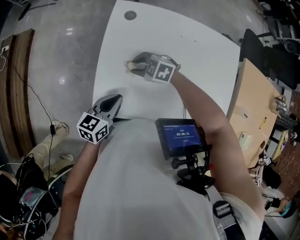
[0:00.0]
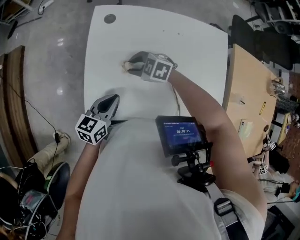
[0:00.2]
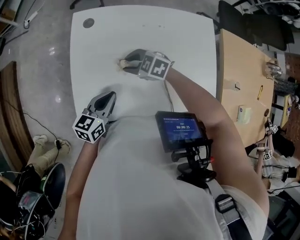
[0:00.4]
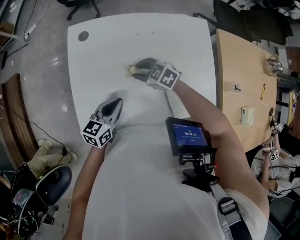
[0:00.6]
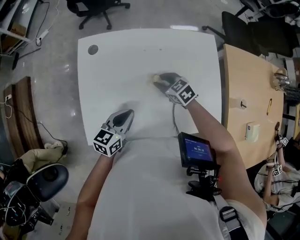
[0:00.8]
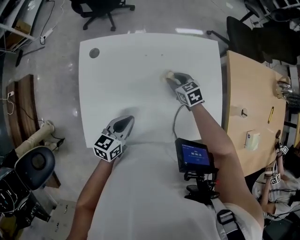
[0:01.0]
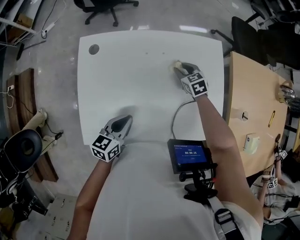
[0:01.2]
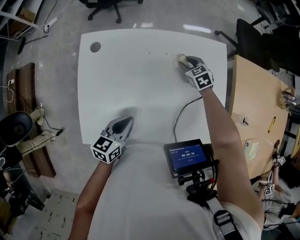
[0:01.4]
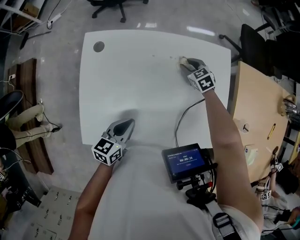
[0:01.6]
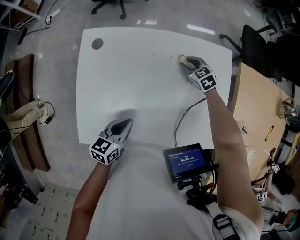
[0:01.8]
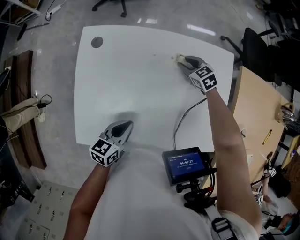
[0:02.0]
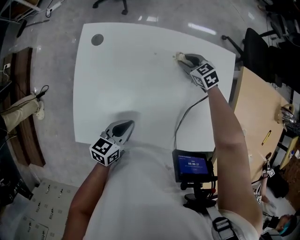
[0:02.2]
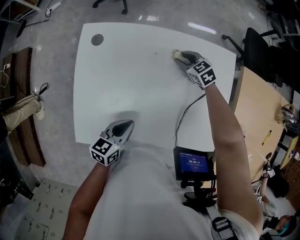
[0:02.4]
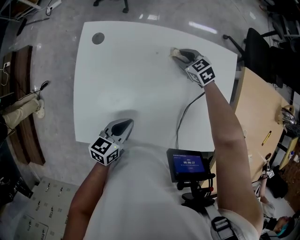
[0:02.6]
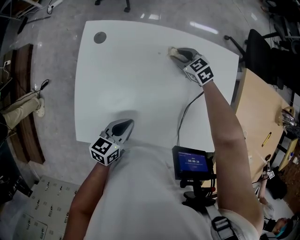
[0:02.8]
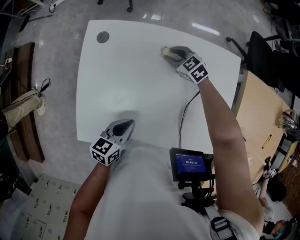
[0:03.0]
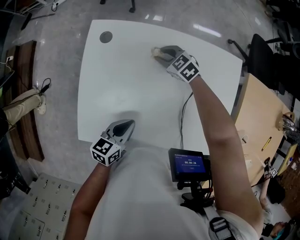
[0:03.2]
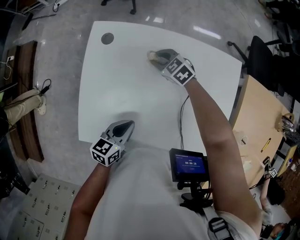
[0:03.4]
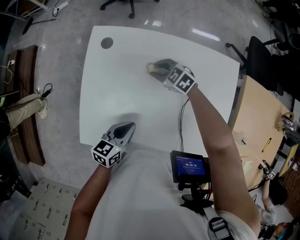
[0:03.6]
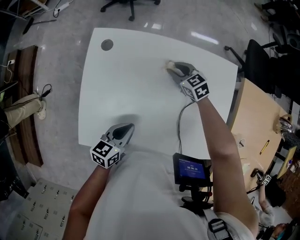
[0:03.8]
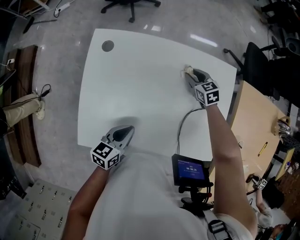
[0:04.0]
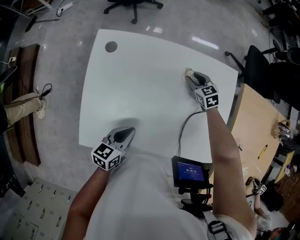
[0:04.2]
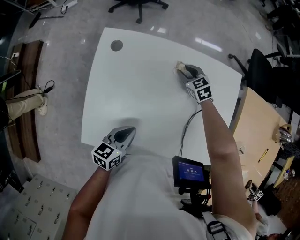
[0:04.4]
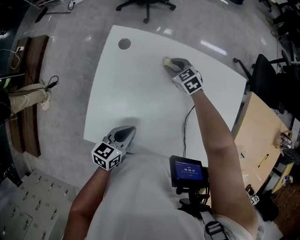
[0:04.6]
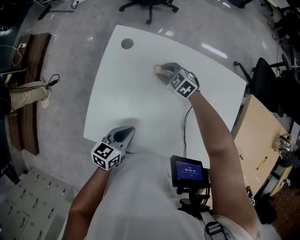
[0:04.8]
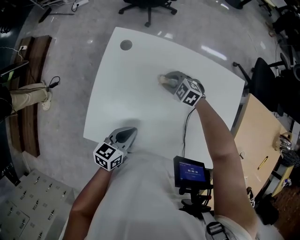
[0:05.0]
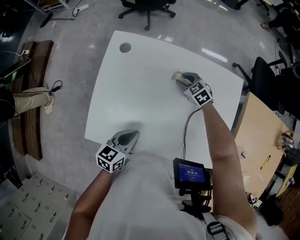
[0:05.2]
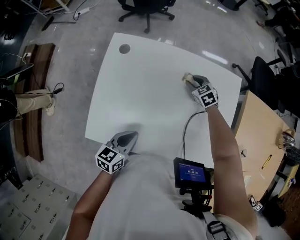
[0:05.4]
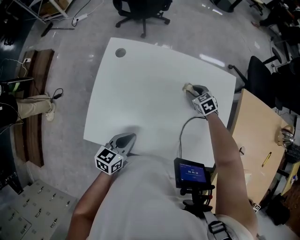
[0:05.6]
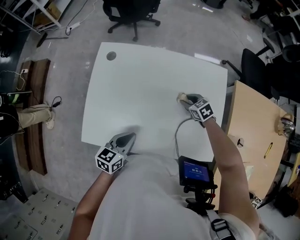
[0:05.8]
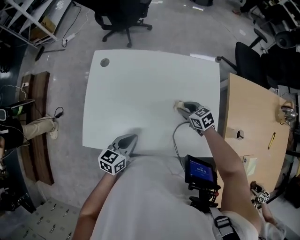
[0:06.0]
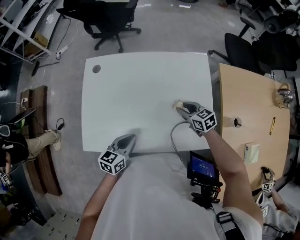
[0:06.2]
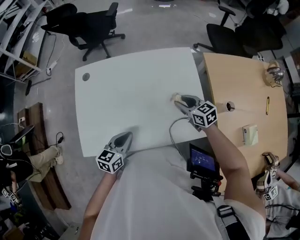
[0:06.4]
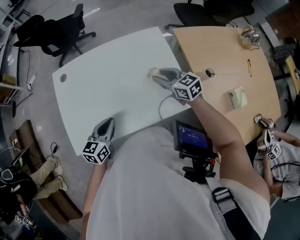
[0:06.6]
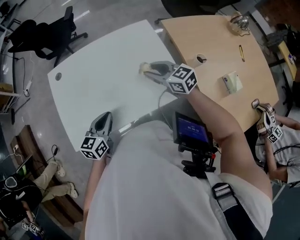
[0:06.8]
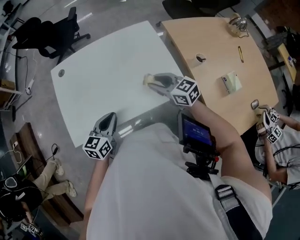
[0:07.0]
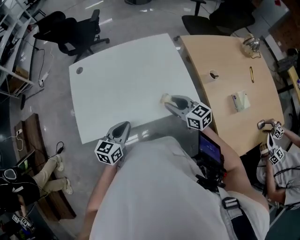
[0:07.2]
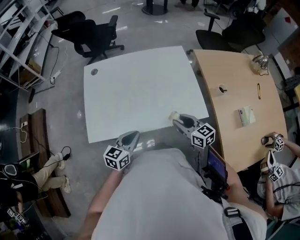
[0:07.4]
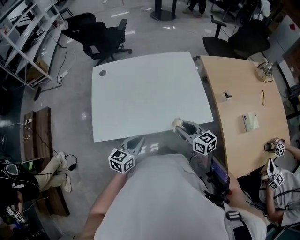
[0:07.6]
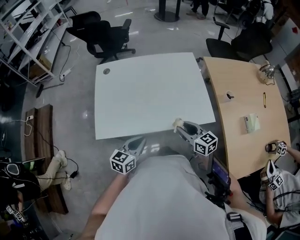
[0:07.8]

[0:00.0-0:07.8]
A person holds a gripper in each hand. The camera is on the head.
0:00.0 to 0:01.6: The left gripper moves about 15 cm, while the right gripper ends up some 40 cm from where it was, and changes its angle by some 50 degrees.
0:01.6 to 0:03.2: The right gripper travels to the left by approximately 20 cm, and changes its angle by roughly 30 degrees.
0:03.2 to 0:04.6: The right gripper reaches approximately 15 cm to the right, then returns.
0:04.6 to 0:06.2: The right gripper travels backward and to the right by roughly 30 cm, and swivels some 30 degrees; the left gripper is displaced to the right and backward by about 10 cm.
0:06.2 to 0:07.8: The right gripper moves backward, approximately 25 cm, and swivels roughly 20 degrees; the left gripper moves backward, roughly 15 cm.

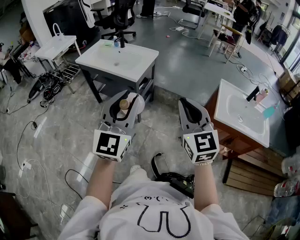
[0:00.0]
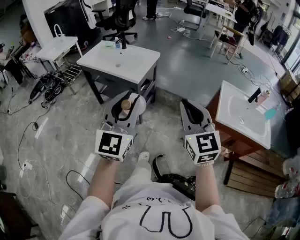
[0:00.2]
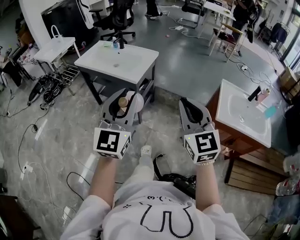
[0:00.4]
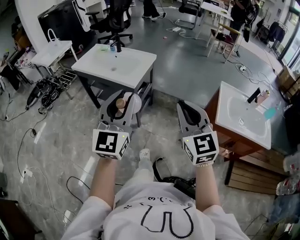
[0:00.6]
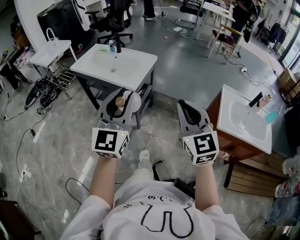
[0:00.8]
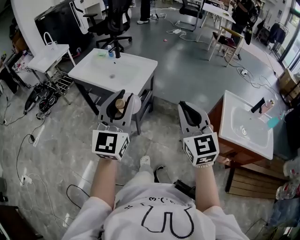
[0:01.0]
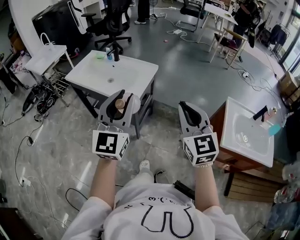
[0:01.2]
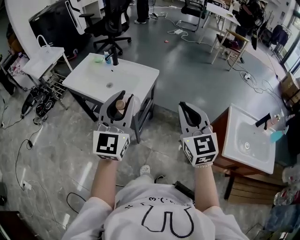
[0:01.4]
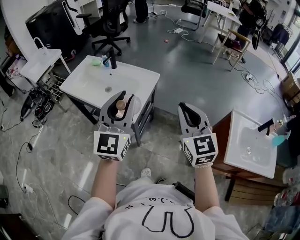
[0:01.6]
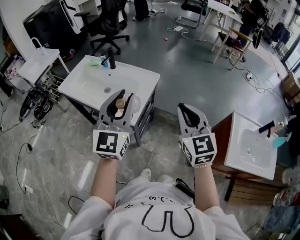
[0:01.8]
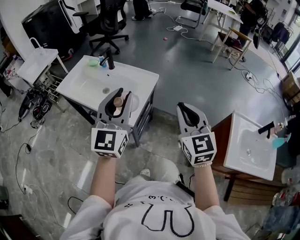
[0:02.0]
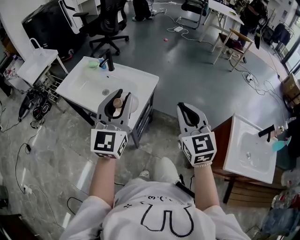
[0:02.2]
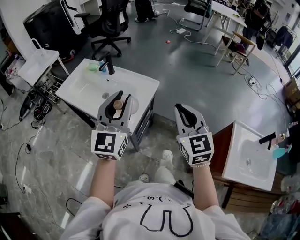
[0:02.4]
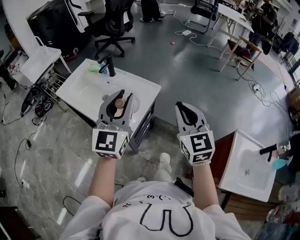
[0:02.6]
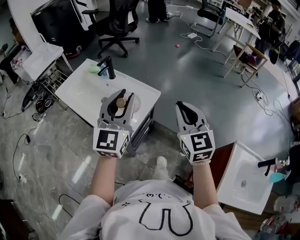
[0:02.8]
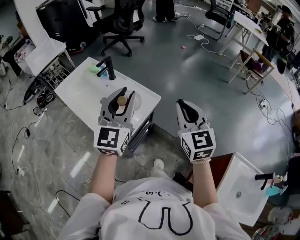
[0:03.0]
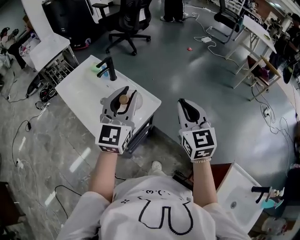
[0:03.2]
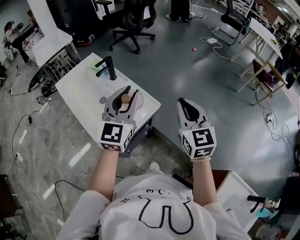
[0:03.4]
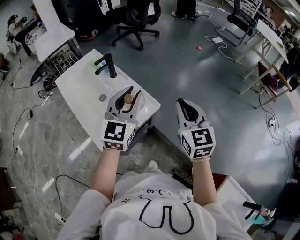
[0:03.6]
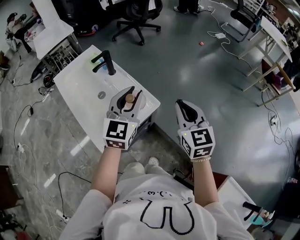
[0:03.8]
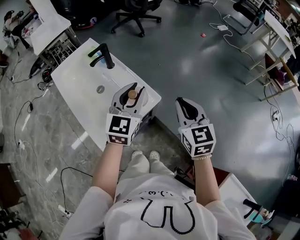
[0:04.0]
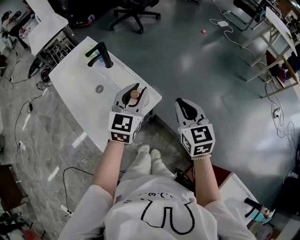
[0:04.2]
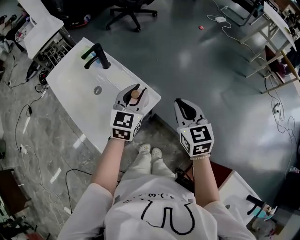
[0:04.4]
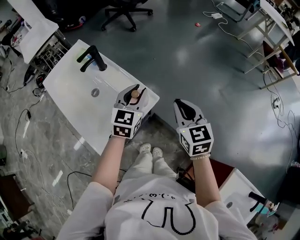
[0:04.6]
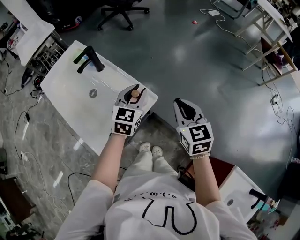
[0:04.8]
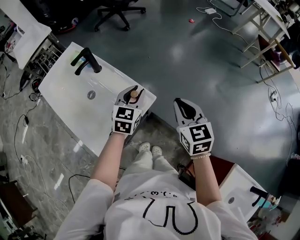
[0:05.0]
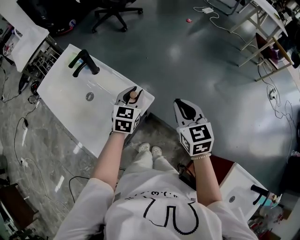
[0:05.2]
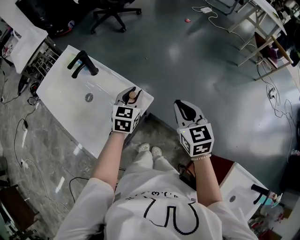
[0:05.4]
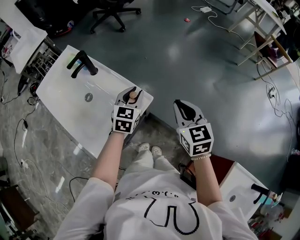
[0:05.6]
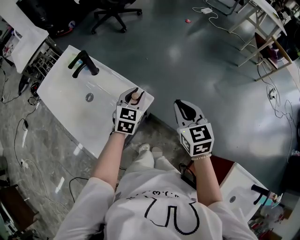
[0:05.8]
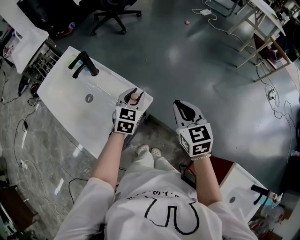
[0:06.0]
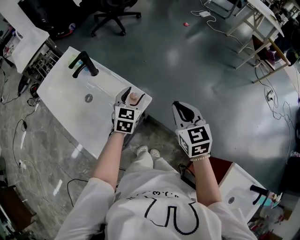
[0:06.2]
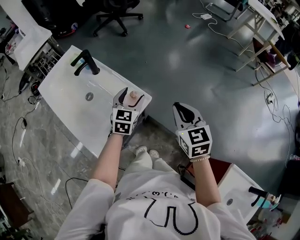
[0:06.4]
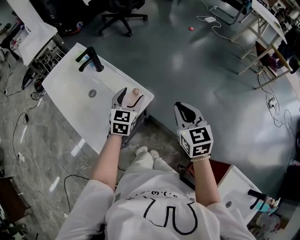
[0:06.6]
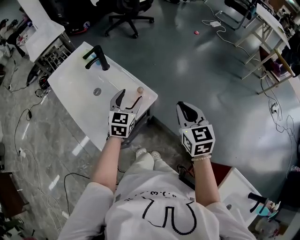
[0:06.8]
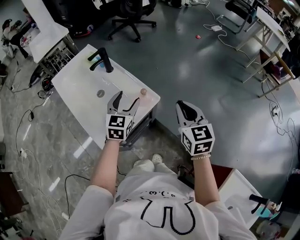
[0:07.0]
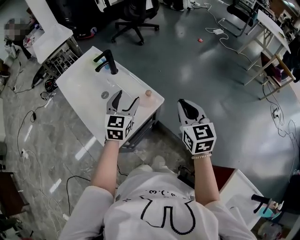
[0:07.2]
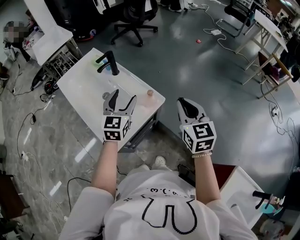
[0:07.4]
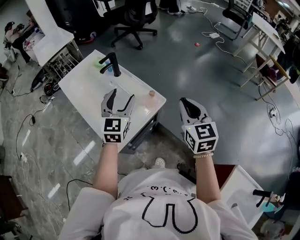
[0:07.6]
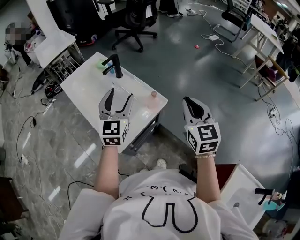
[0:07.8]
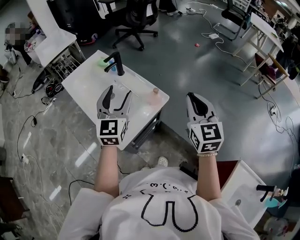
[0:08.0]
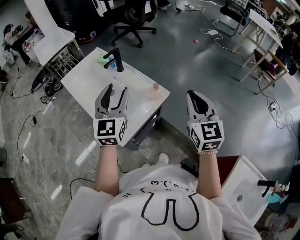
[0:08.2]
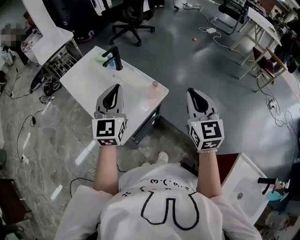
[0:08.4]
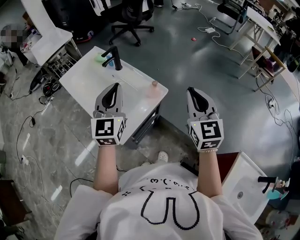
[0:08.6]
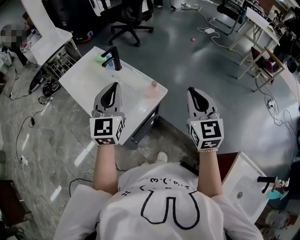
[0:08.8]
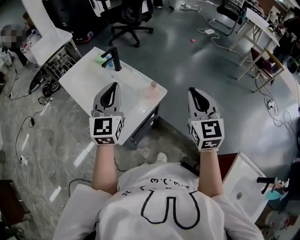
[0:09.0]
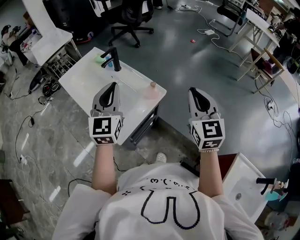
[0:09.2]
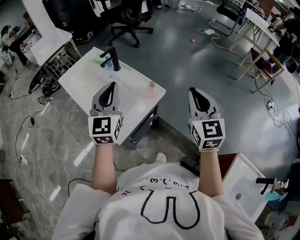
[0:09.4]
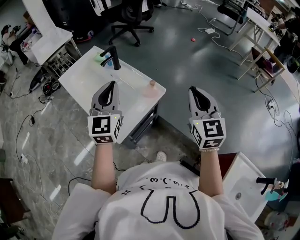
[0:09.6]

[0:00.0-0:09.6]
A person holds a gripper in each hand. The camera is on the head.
0:00.0 to 0:01.6: Both grippers travel together forward, approximately 35 cm.
0:01.6 to 0:03.2: Both grippers travel together forward, approximately 25 cm.
0:03.2 to 0:04.8: The right gripper travels downward and forward by some 15 cm. Meanwhile the left gripper moves downward and forward, roughly 25 cm, and turns by about 30 degrees.
0:04.8 to 0:06.4: The left gripper opens.
0:06.4 to 0:08.0: The right gripper travels upward, to the left and backward by roughly 15 cm, while the left gripper shifts roughly 25 cm upward, to the left and backward, and turns by some 30 degrees.
0:08.0 to 0:09.6: The left gripper closes up.

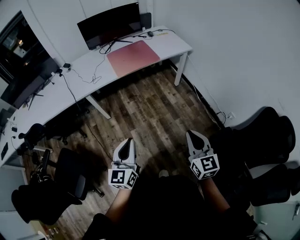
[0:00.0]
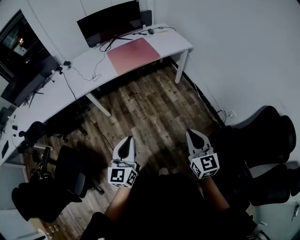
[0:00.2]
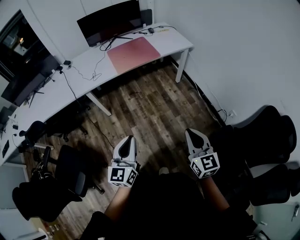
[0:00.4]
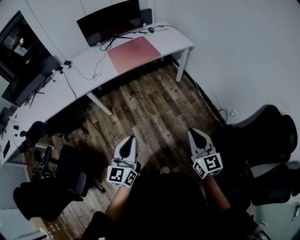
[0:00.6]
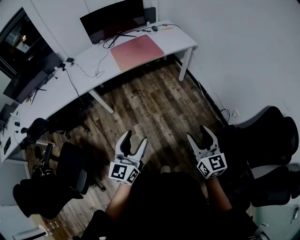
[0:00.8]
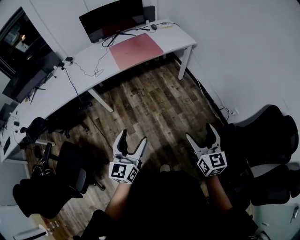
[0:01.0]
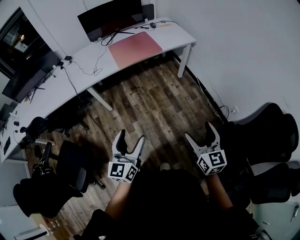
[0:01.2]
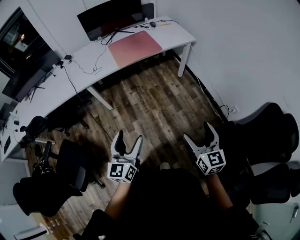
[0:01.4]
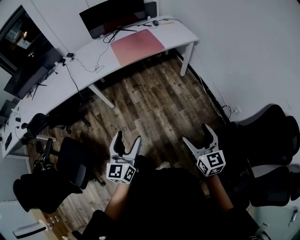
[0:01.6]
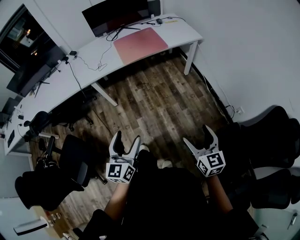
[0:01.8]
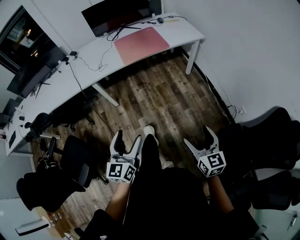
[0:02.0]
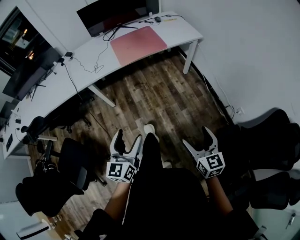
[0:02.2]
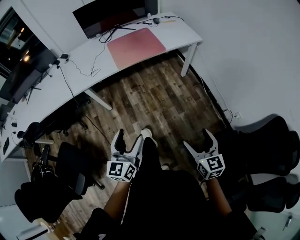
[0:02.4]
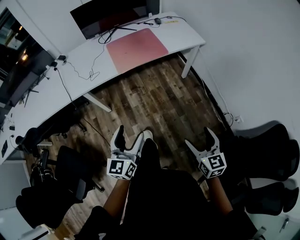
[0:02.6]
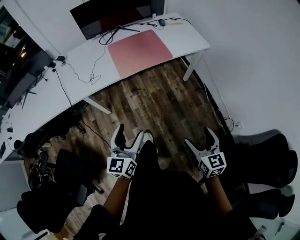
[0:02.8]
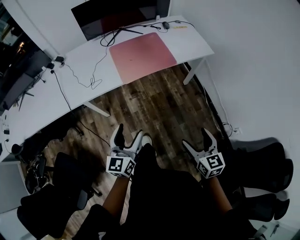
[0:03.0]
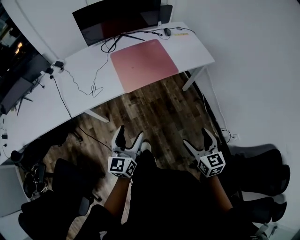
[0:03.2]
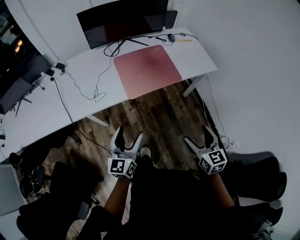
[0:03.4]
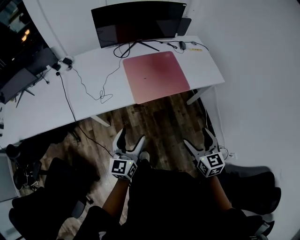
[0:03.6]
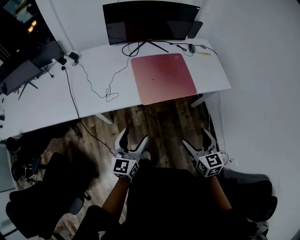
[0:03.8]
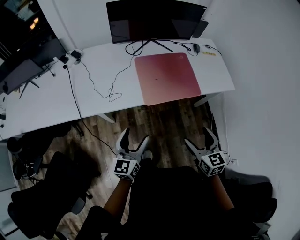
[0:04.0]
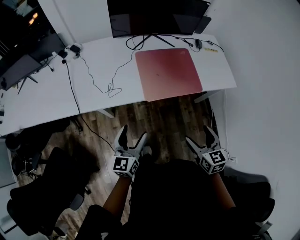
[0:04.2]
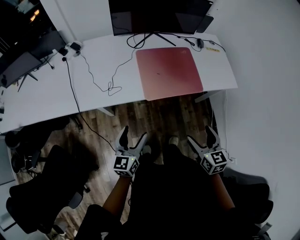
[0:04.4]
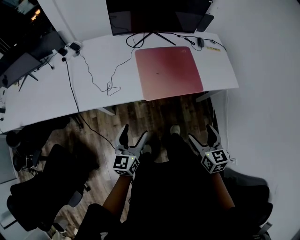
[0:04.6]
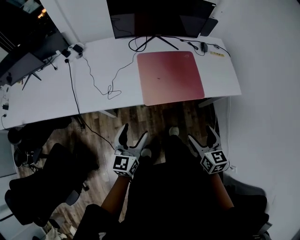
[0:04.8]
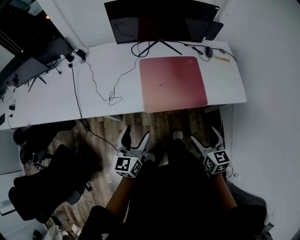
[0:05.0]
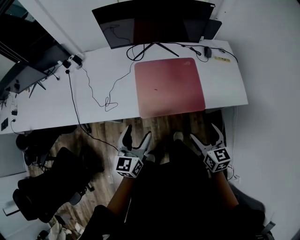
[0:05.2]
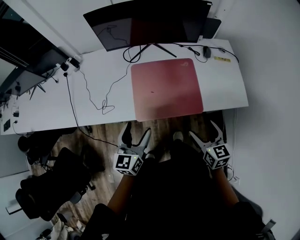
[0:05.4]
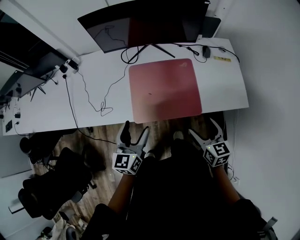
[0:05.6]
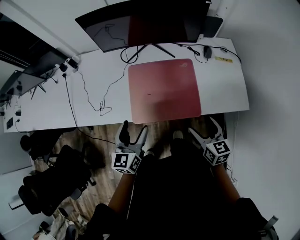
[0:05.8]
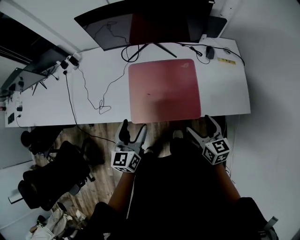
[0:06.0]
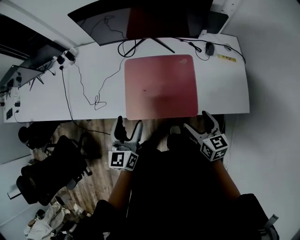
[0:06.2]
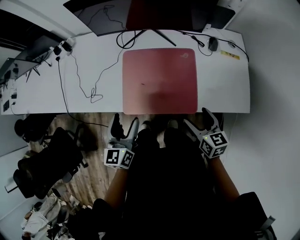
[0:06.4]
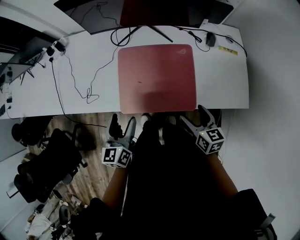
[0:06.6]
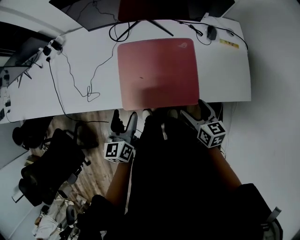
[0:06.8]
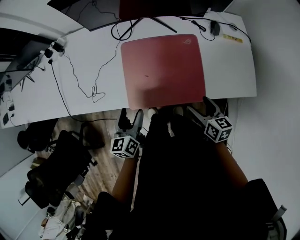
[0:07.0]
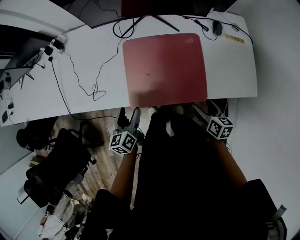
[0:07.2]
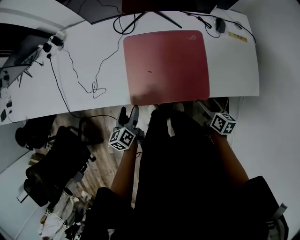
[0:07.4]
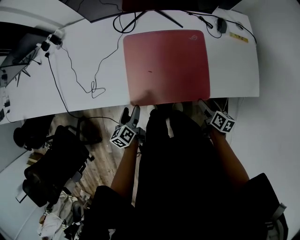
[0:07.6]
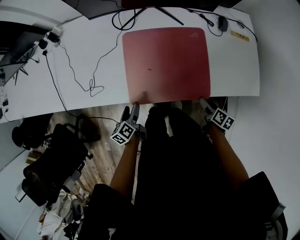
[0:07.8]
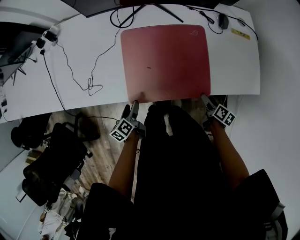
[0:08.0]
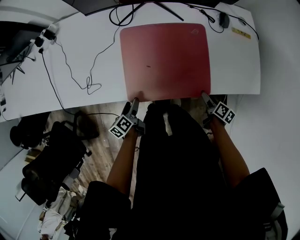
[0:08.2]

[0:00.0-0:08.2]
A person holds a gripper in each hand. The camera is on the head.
0:00.0 to 0:01.6: The left gripper opens up, while the right gripper changes place by approximately 5 cm, and opens up.
0:01.6 to 0:03.2: Both grippers travel together forward, roughly 35 cm.
0:03.2 to 0:05.0: Both grippers move forward, roughly 25 cm.
0:05.0 to 0:06.6: The left gripper heads forward and to the right, covering about 20 cm. Meanwhile the right gripper shifts about 25 cm forward, to the right and downward.
0:06.6 to 0:08.2: The two grippers go some 20 cm downward. The right gripper rolls clockwise, seen from behind, by roughly 40 degrees. The left gripper turns by roughly 40 degrees.
